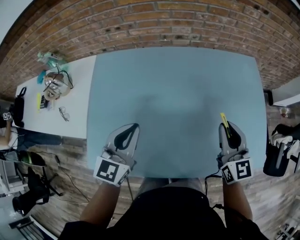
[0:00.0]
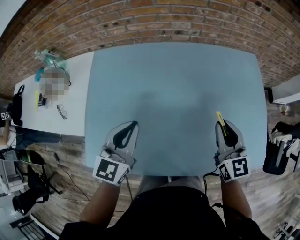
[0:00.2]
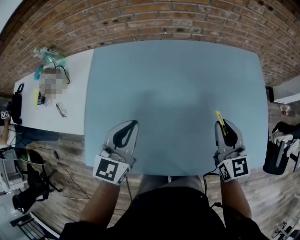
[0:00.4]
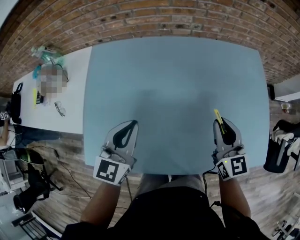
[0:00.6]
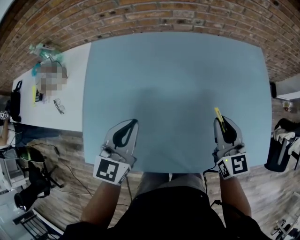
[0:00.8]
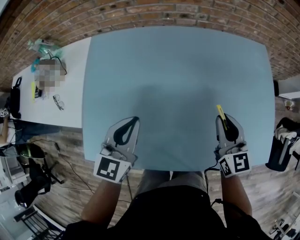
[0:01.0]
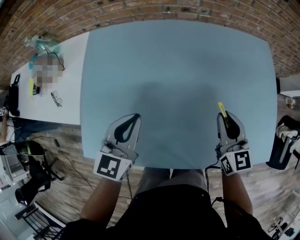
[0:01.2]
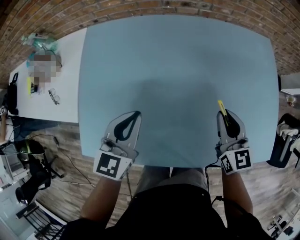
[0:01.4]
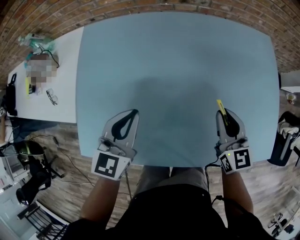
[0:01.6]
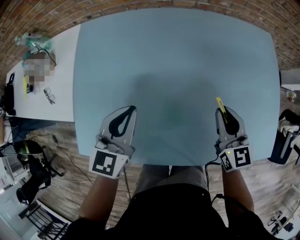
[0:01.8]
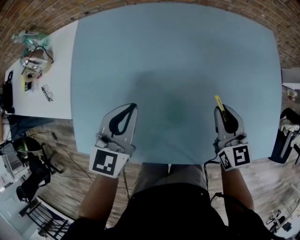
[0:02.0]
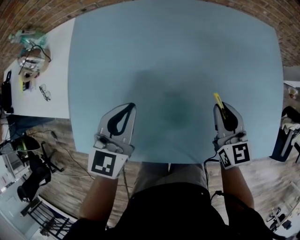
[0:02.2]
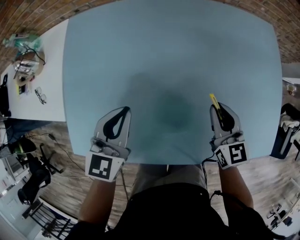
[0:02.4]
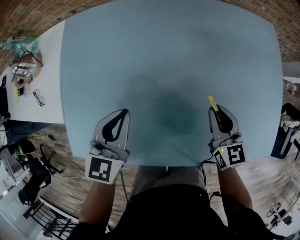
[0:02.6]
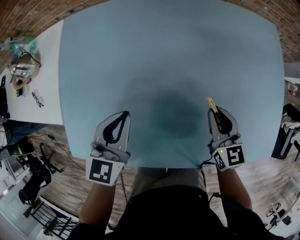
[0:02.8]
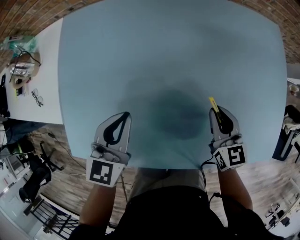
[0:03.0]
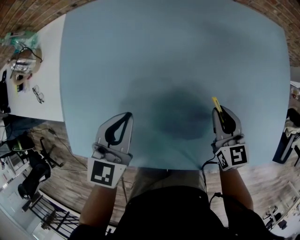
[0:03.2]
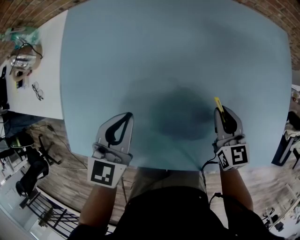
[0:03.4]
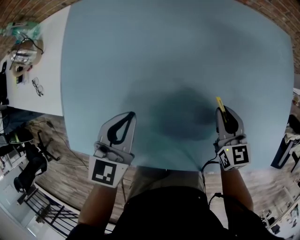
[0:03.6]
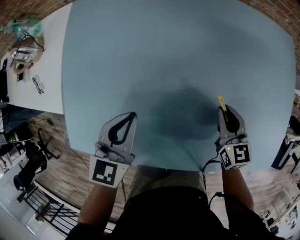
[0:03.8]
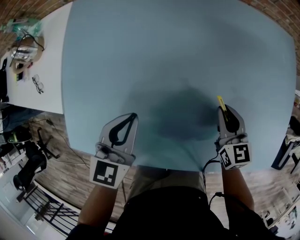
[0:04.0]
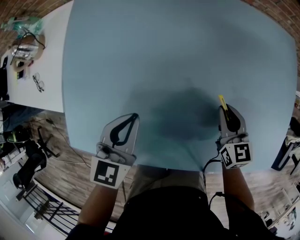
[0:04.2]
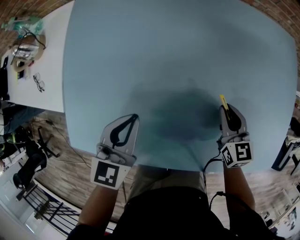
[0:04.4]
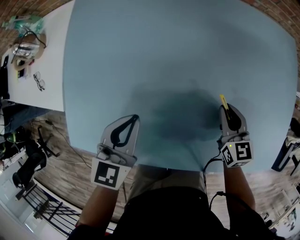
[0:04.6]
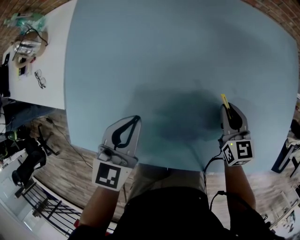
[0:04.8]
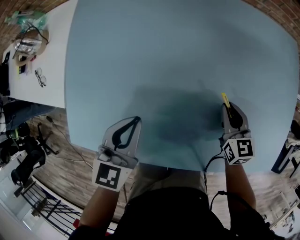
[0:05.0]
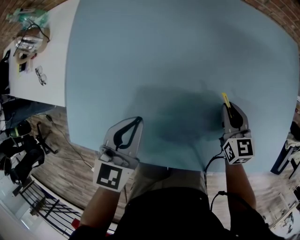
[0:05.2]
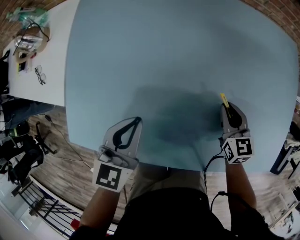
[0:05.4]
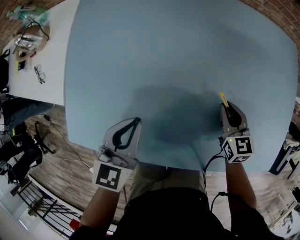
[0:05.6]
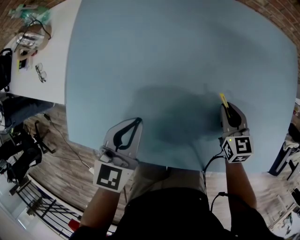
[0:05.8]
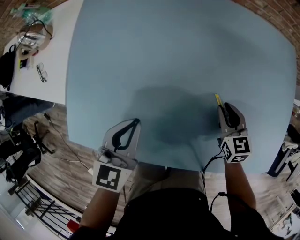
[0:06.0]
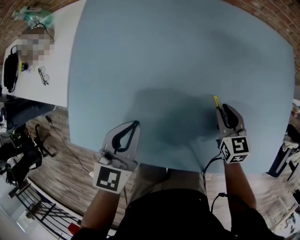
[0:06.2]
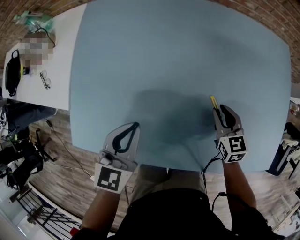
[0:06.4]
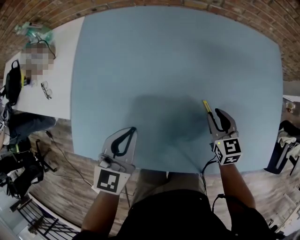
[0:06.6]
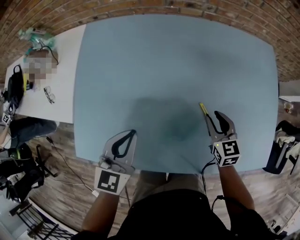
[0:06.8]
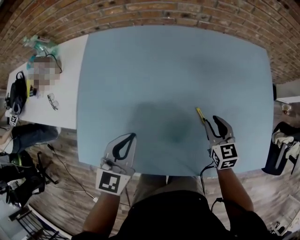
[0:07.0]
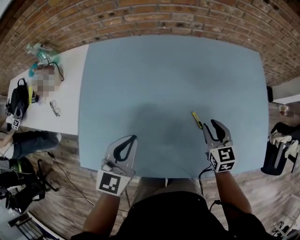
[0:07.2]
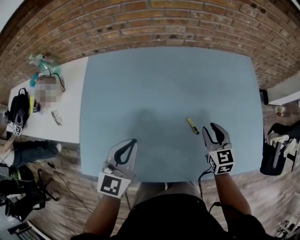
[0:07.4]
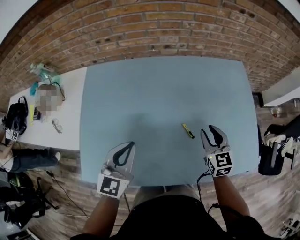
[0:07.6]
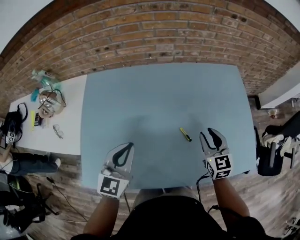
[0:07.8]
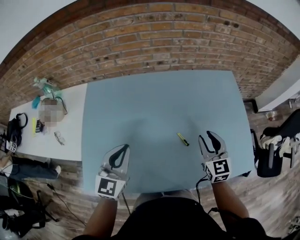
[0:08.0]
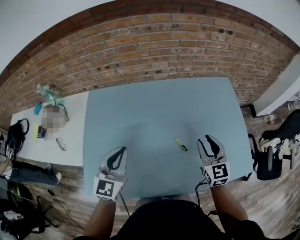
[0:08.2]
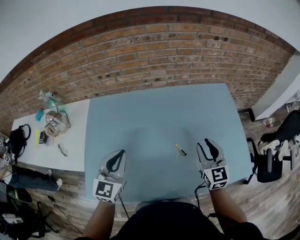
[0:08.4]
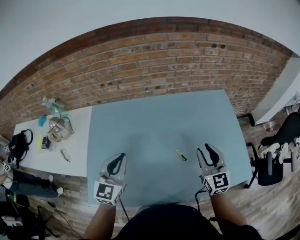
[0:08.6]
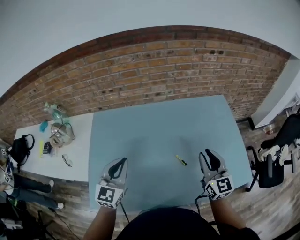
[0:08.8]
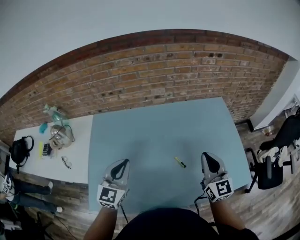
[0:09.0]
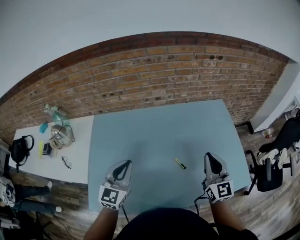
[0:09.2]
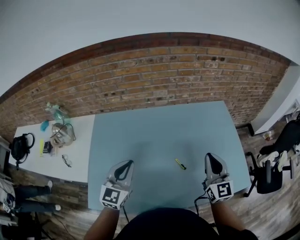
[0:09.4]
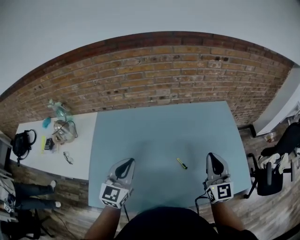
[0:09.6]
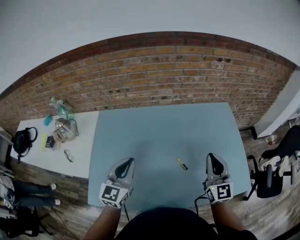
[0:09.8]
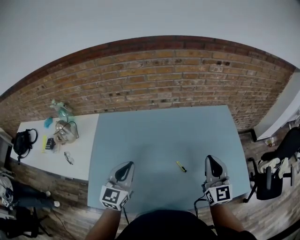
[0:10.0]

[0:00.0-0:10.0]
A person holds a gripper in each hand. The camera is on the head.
0:00.0 to 0:01.4: The left gripper travels downward by about 5 cm, while the right gripper goes about 10 cm downward.
0:01.4 to 0:02.8: The left gripper goes some 5 cm downward, while the right gripper heads downward, covering approximately 10 cm.
0:02.8 to 0:04.2: The grippers stay close to where they were, moving slightly.
0:04.2 to 0:05.8: The grippers move only a little.
0:05.8 to 0:07.2: Both grippers travel together upward, approximately 10 cm.
0:07.2 to 0:08.6: The right gripper travels upward by about 20 cm, and swivels approximately 30 degrees. Meanwhile the left gripper is displaced upward by roughly 10 cm.
0:08.6 to 0:10.0: The right gripper travels upward by approximately 5 cm, and closes.

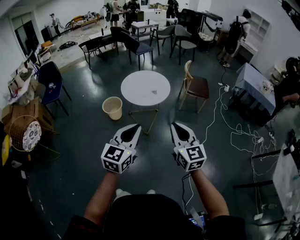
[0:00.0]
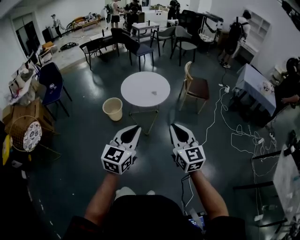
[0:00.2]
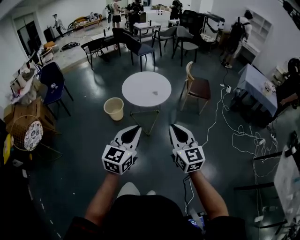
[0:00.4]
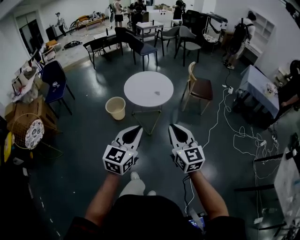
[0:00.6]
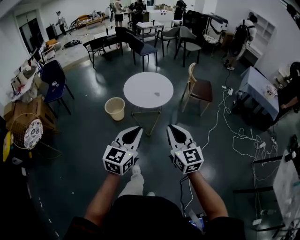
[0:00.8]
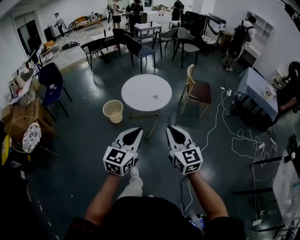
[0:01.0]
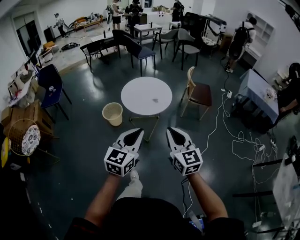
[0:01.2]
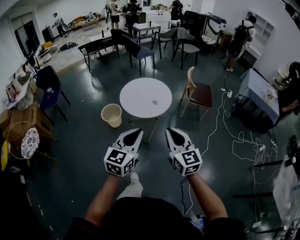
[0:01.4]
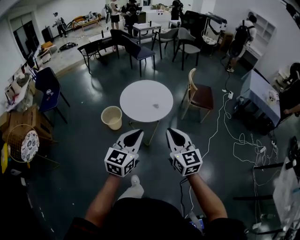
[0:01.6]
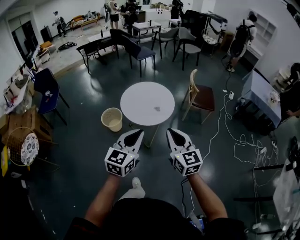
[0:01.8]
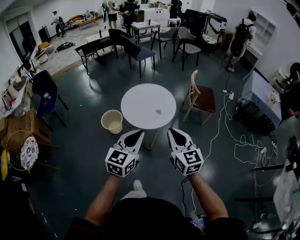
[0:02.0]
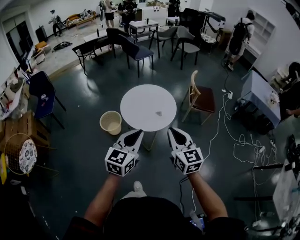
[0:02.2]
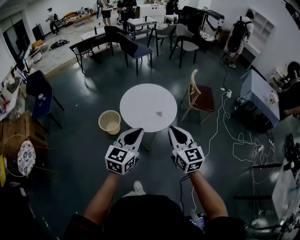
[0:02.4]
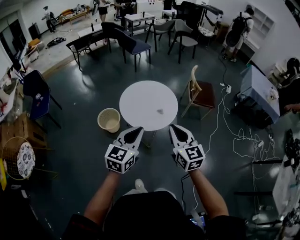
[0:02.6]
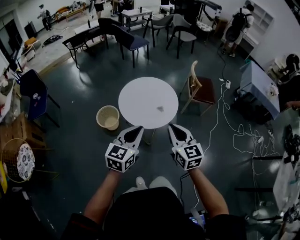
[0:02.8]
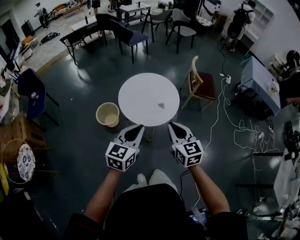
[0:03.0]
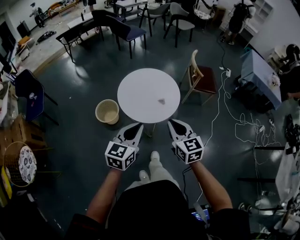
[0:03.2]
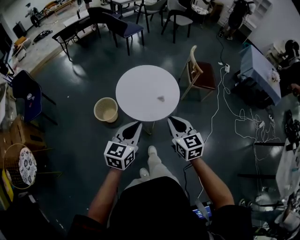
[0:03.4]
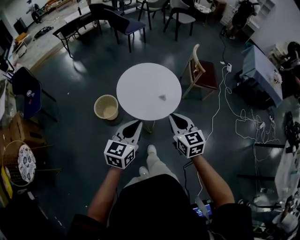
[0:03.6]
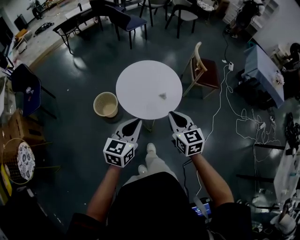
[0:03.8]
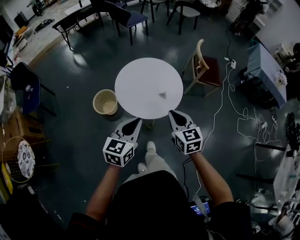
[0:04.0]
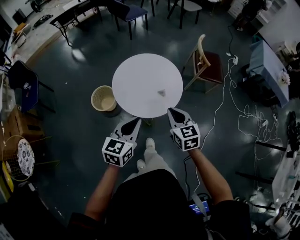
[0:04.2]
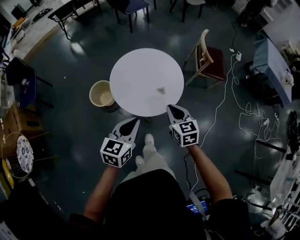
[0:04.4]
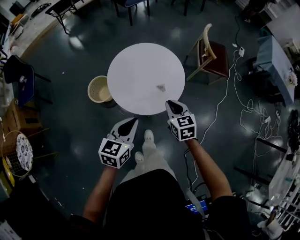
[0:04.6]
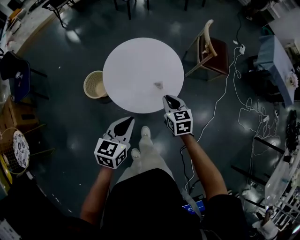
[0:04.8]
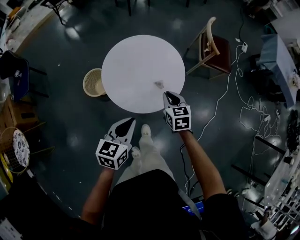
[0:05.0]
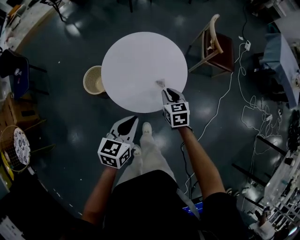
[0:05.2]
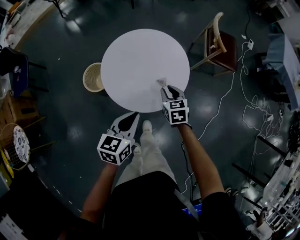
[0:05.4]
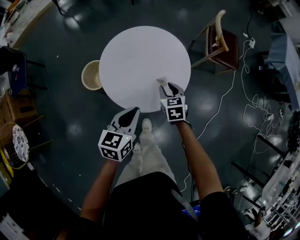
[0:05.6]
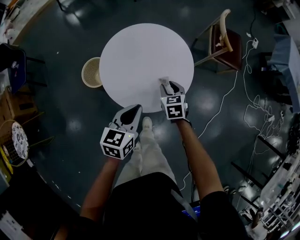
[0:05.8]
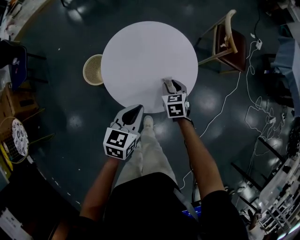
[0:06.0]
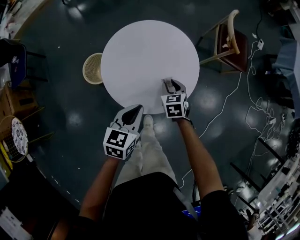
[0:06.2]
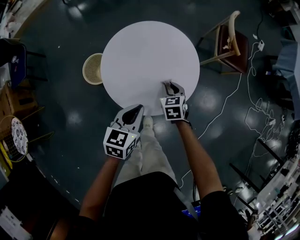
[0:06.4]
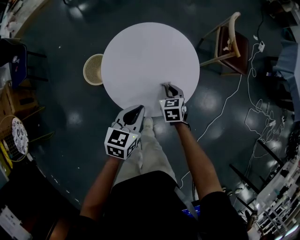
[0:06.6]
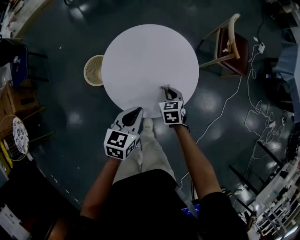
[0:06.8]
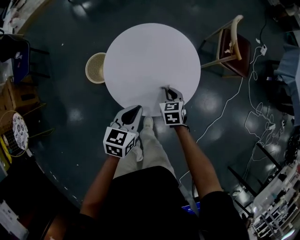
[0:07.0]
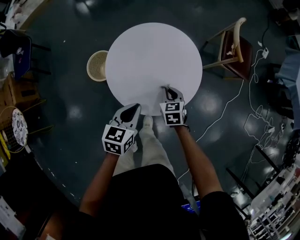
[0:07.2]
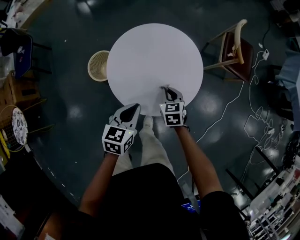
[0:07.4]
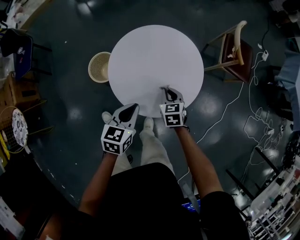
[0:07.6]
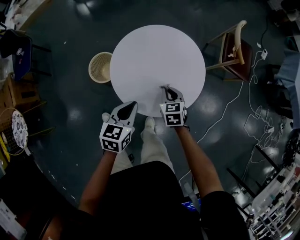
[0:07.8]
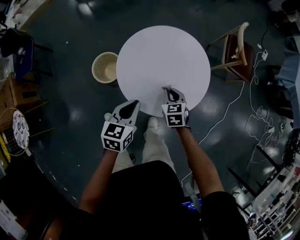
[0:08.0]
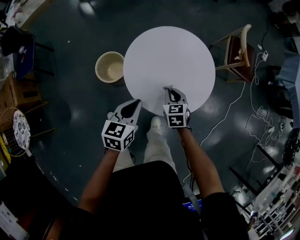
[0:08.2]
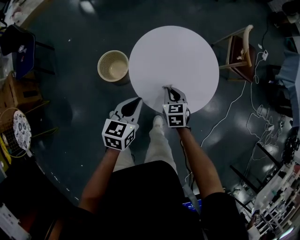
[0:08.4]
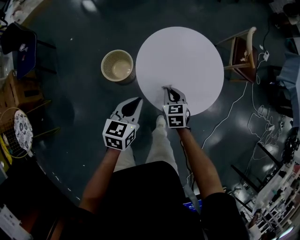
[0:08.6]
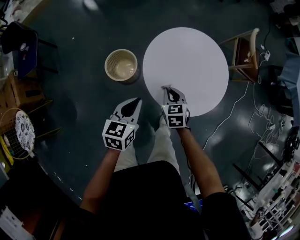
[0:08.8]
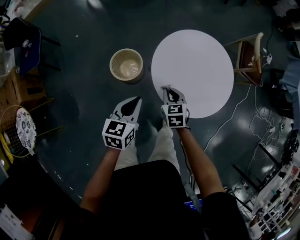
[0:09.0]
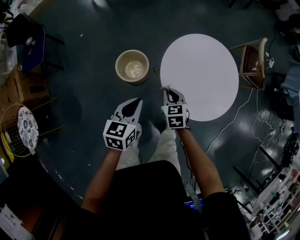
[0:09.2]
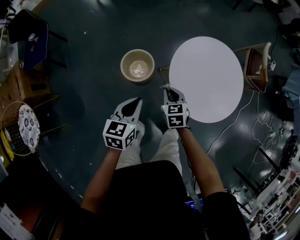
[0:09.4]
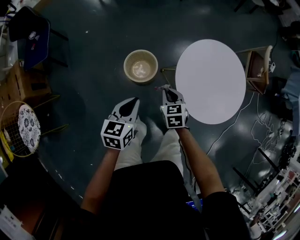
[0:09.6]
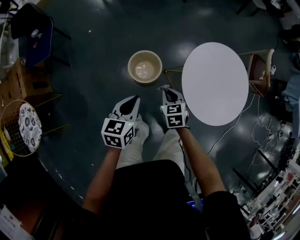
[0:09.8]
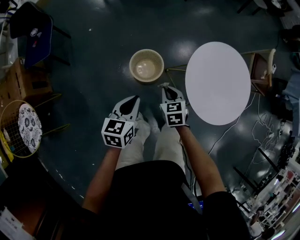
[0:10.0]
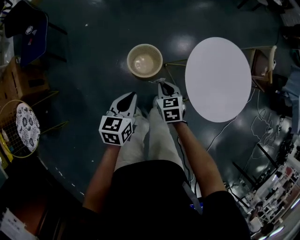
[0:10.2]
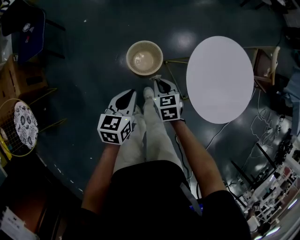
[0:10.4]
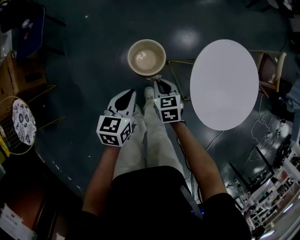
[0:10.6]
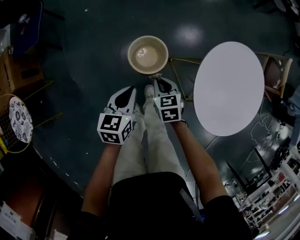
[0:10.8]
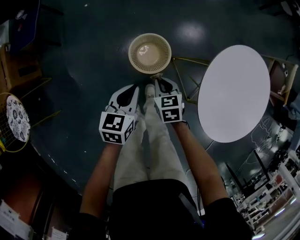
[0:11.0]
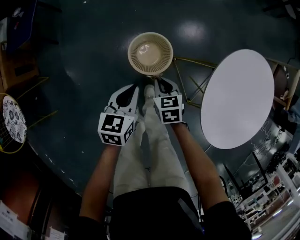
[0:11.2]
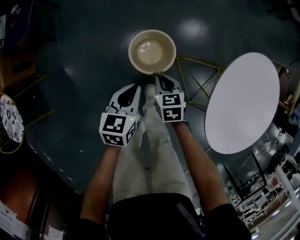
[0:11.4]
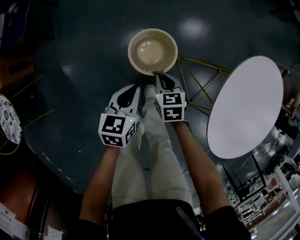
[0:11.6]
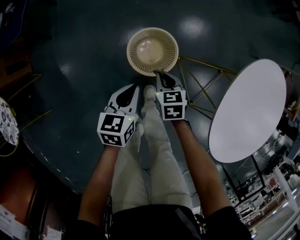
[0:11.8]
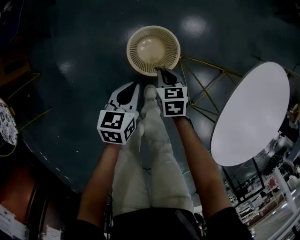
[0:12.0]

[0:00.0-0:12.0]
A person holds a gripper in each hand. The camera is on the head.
0:00.0 to 0:01.6: Both grippers move forward, about 20 cm.
0:01.6 to 0:03.0: Both grippers move forward and to the left, approximately 25 cm.
0:03.0 to 0:04.4: Both grippers travel together forward and downward, about 20 cm.
0:04.4 to 0:06.0: Both grippers move downward and forward, approximately 25 cm. The right gripper opens.
0:06.0 to 0:07.6: The left gripper moves to the left, approximately 5 cm, while the right gripper closes up.
0:07.6 to 0:09.0: The two grippers go some 25 cm to the left.
0:09.0 to 0:10.4: Both grippers travel together to the left, approximately 25 cm.
0:10.4 to 0:12.0: Both grippers move downward, some 30 cm.

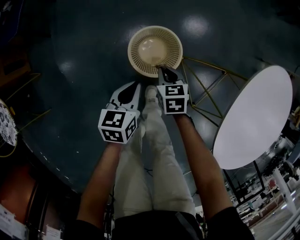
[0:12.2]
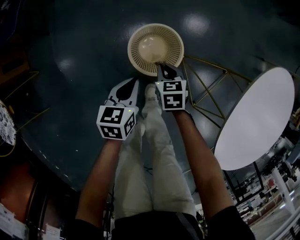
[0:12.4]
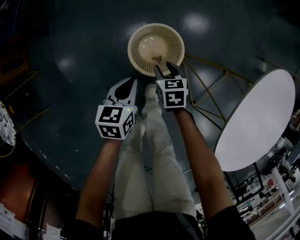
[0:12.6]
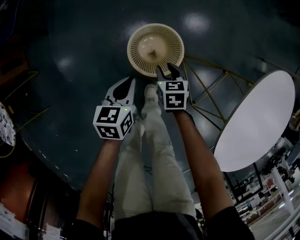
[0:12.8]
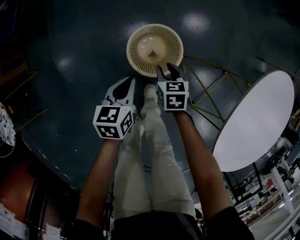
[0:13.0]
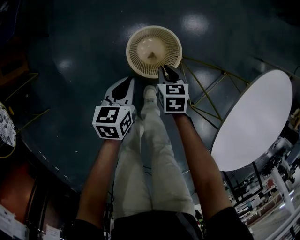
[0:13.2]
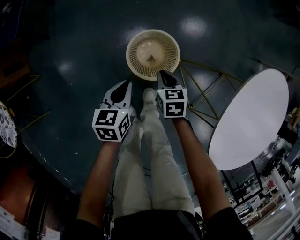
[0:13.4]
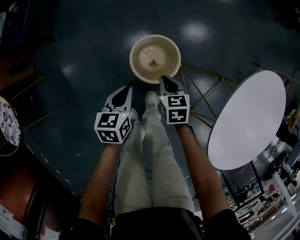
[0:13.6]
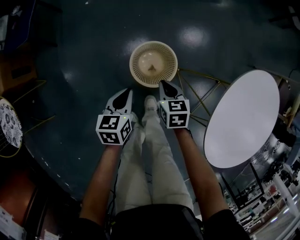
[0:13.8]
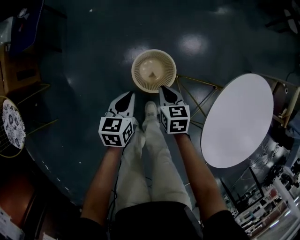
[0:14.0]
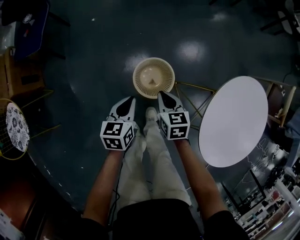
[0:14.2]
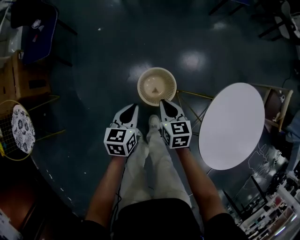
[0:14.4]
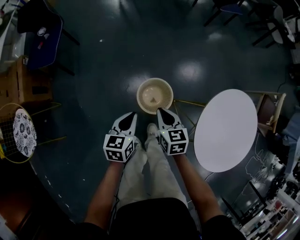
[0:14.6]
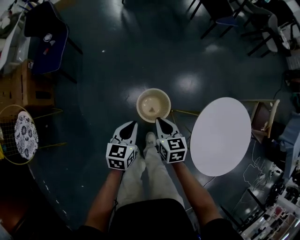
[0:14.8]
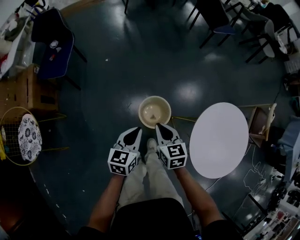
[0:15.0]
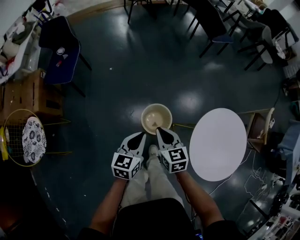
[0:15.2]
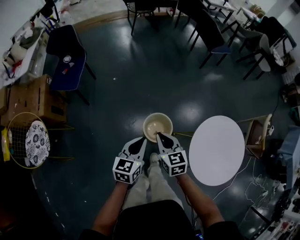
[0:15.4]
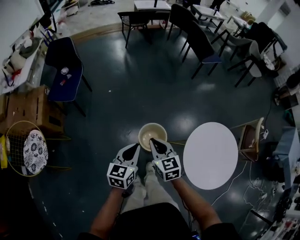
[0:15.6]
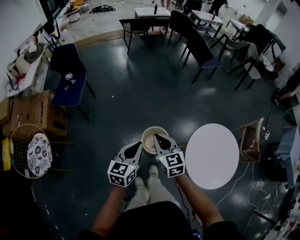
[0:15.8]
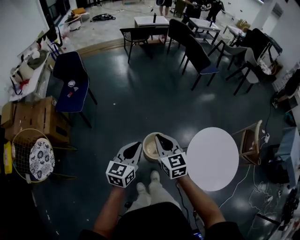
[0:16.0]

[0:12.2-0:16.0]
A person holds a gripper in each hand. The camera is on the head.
0:12.2 to 0:13.4: The right gripper opens, then closes once more.
0:13.4 to 0:14.8: The two grippers go roughly 35 cm upward.
0:14.8 to 0:16.0: Both grippers travel together upward, about 30 cm. The left gripper changes its angle by some 20 degrees, while the right gripper swivels roughly 20 degrees.
